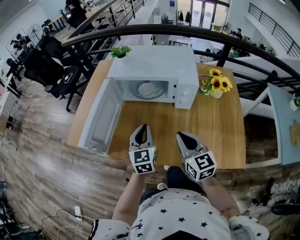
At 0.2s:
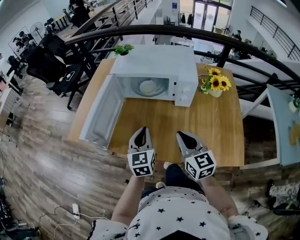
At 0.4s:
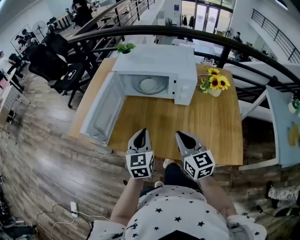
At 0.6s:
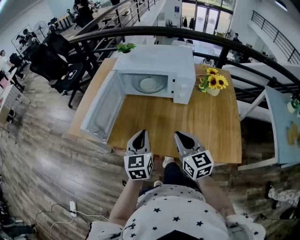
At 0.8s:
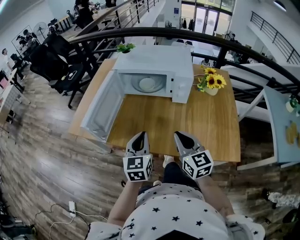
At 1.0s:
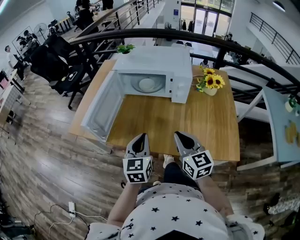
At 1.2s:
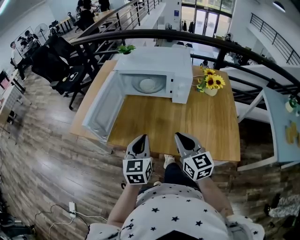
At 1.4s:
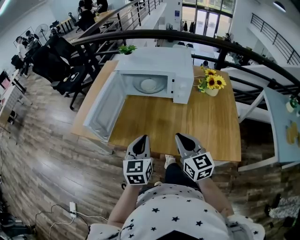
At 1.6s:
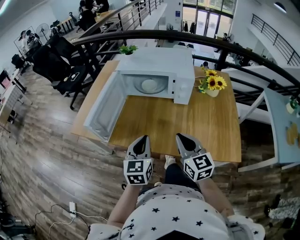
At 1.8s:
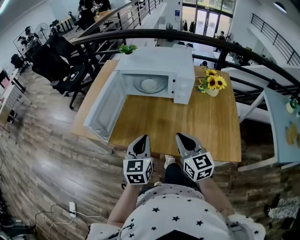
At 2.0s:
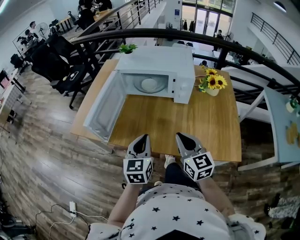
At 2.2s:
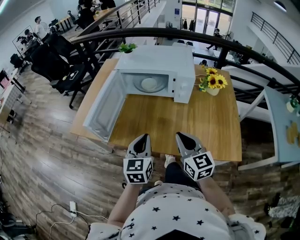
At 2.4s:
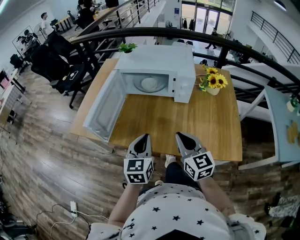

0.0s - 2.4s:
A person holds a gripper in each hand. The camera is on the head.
0.0s - 1.2s: The right gripper travels backward by some 10 cm. Meanwhile the left gripper moves backward, some 15 cm.
1.2s - 2.4s: Both grippers stay put.

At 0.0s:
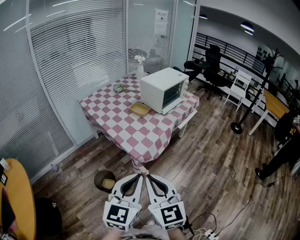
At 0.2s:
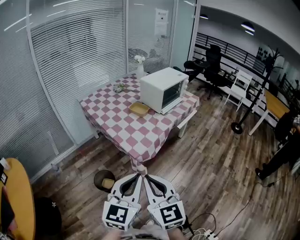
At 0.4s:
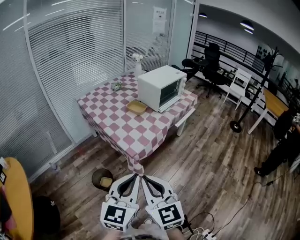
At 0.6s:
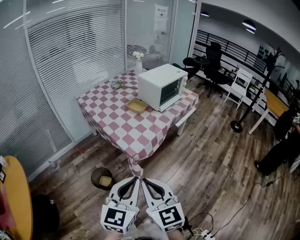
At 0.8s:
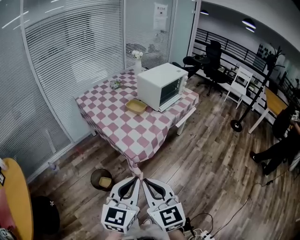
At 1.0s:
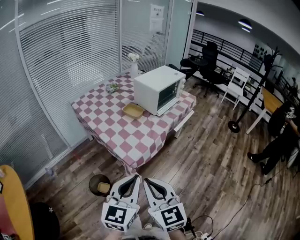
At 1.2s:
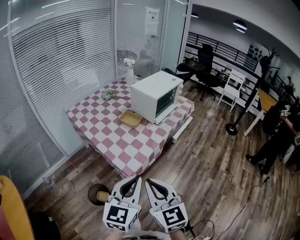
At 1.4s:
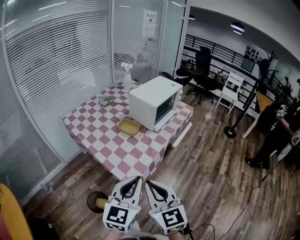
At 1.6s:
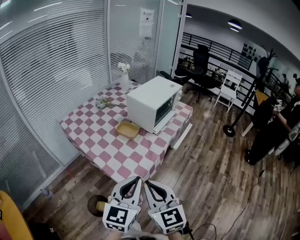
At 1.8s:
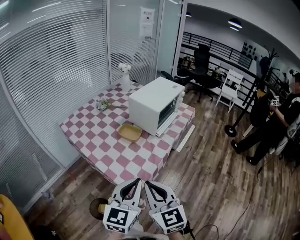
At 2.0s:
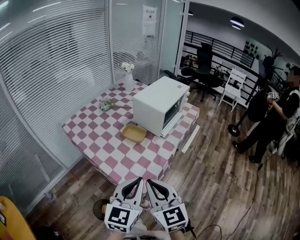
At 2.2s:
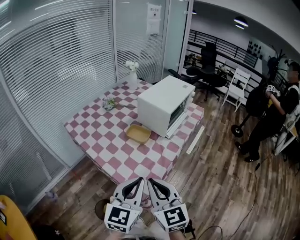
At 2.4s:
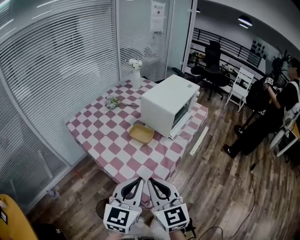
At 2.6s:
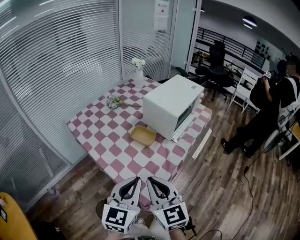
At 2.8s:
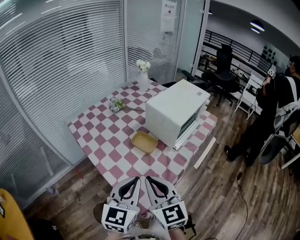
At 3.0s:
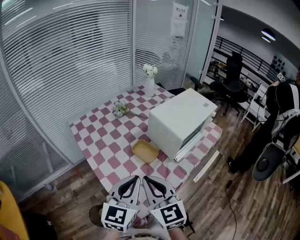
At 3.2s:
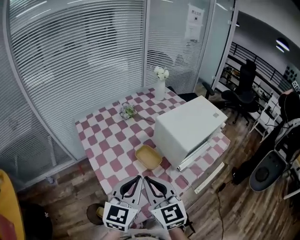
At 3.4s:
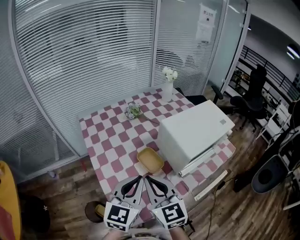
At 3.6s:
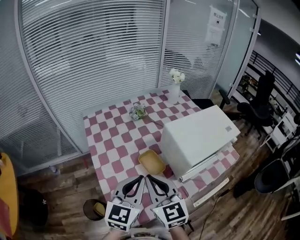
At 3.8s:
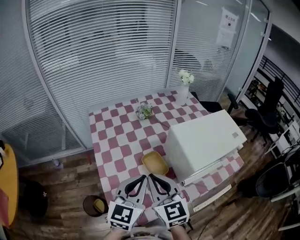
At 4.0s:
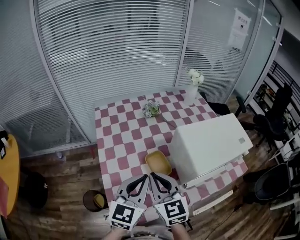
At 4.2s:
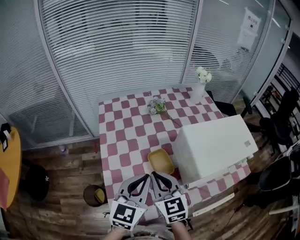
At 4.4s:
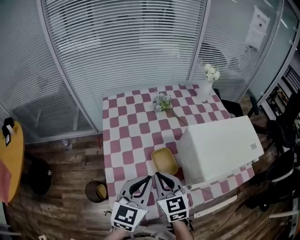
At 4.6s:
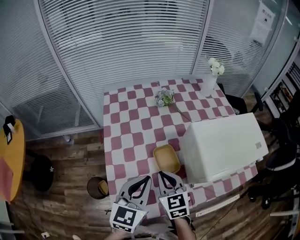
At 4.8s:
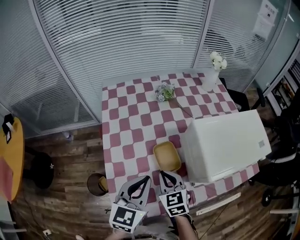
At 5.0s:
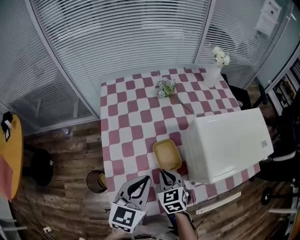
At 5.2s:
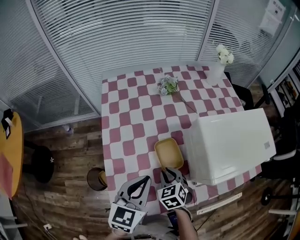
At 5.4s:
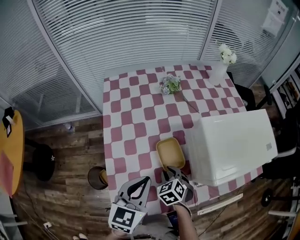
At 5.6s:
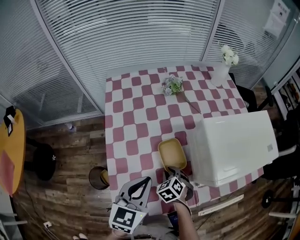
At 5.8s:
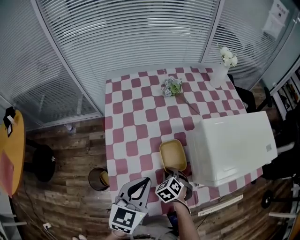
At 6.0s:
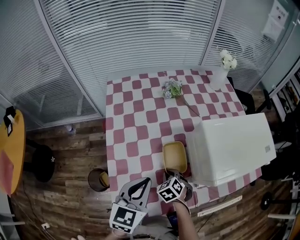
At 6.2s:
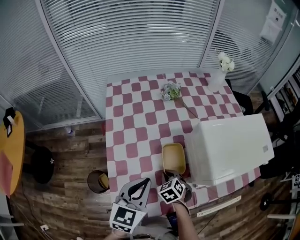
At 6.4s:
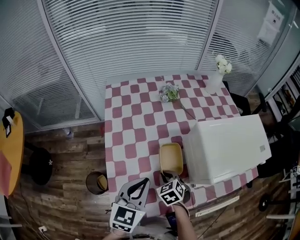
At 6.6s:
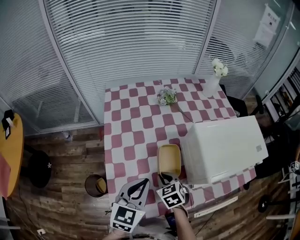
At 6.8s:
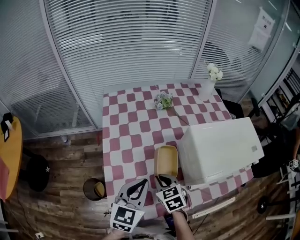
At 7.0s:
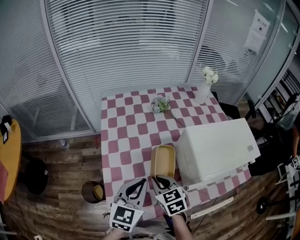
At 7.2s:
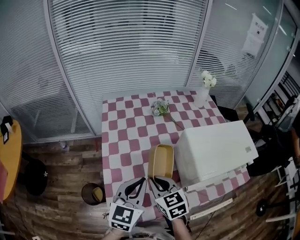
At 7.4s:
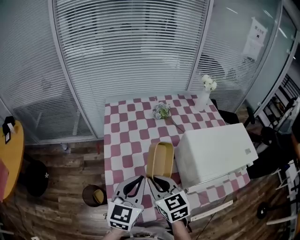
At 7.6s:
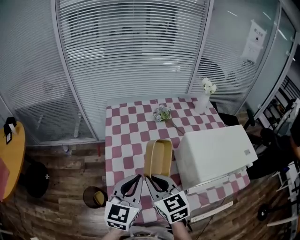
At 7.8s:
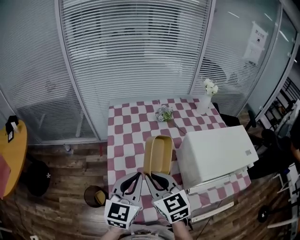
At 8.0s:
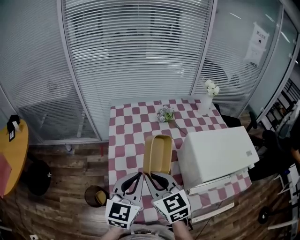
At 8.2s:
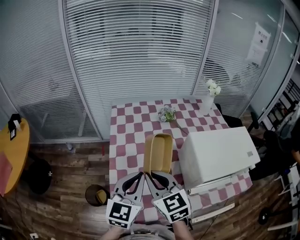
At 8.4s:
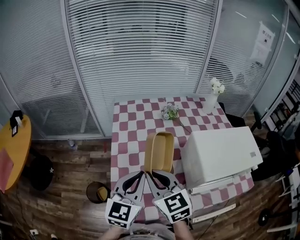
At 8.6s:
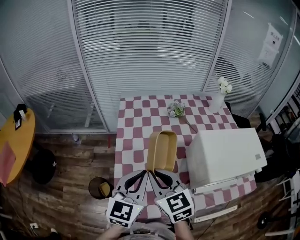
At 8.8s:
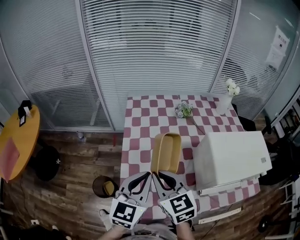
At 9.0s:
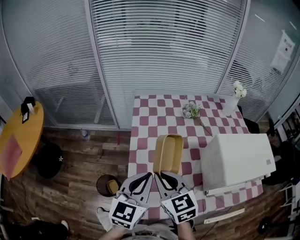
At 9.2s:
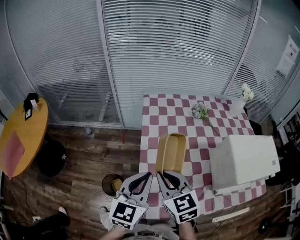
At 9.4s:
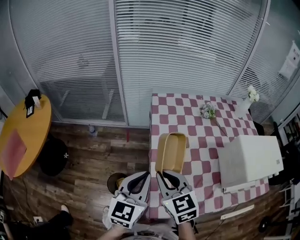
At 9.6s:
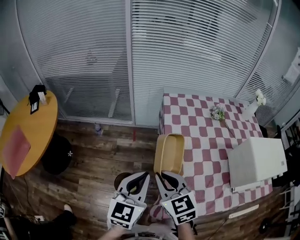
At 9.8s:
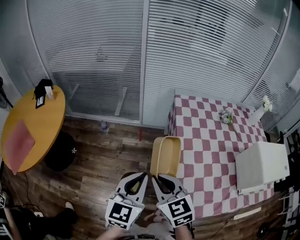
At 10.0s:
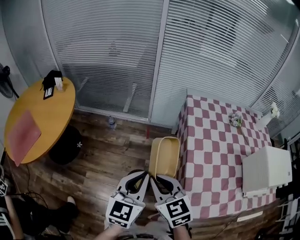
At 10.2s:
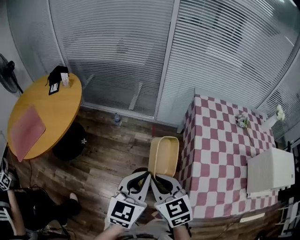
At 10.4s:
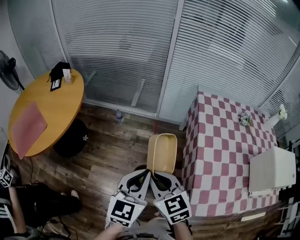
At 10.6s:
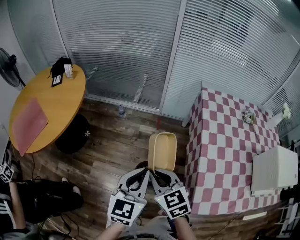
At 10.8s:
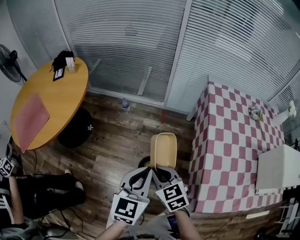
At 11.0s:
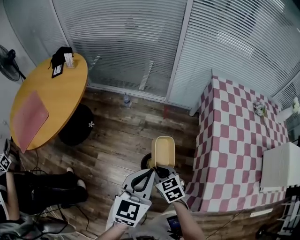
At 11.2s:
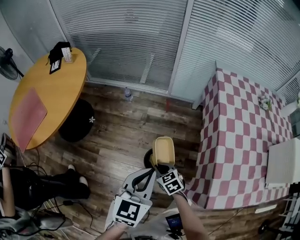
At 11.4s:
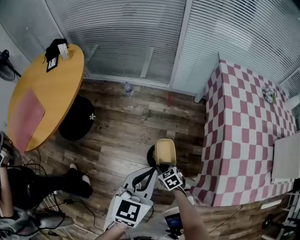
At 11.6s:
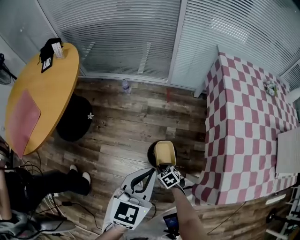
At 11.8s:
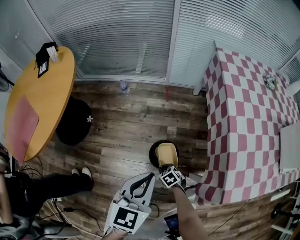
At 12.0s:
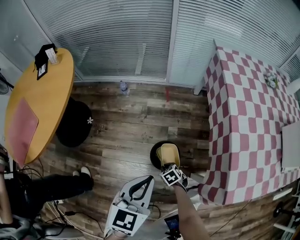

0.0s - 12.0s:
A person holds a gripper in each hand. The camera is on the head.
0.0s - 1.6s: Both grippers travel together forward, approximately 20 cm.
1.6s - 3.0s: Both grippers travel together forward, some 25 cm.
3.0s - 4.4s: The right gripper travels forward and downward by approximately 20 cm, and rotates about 30 degrees, while the left gripper heads forward and to the right, covering about 10 cm, and rotates some 30 degrees.
4.4s - 6.0s: The left gripper goes about 5 cm downward; the right gripper moves downward, roughly 20 cm, and tilts its fingers about 40 degrees downward.
6.0s - 7.6s: The left gripper travels upward by about 10 cm, while the right gripper goes some 25 cm upward, and angles its fingers upward, by about 40 degrees.
7.6s - 9.0s: Both grippers move to the left, roughly 10 cm.
9.0s - 10.4s: Both grippers travel together to the left, some 40 cm.
10.4s - 12.0s: The right gripper shifts about 50 cm downward, and tips its fingers downward by some 40 degrees, while the left gripper is displaced downward and to the left by approximately 20 cm.

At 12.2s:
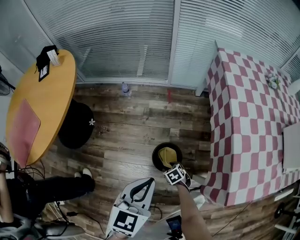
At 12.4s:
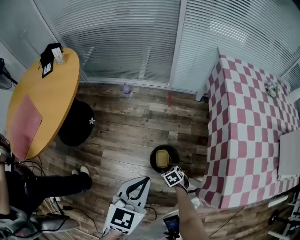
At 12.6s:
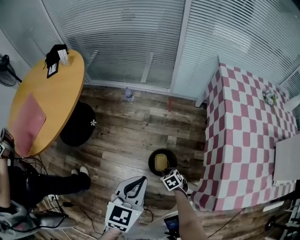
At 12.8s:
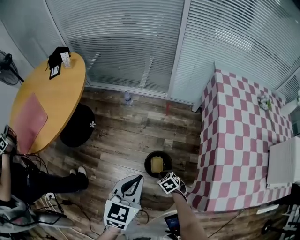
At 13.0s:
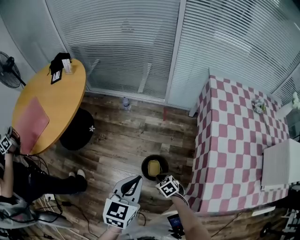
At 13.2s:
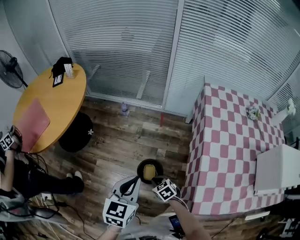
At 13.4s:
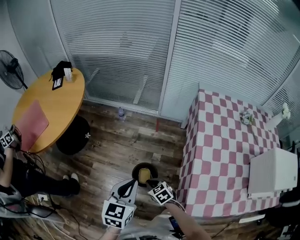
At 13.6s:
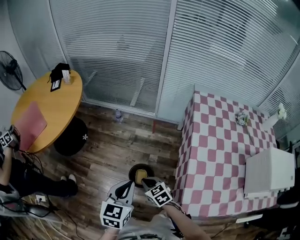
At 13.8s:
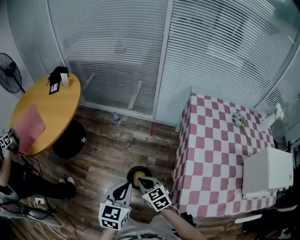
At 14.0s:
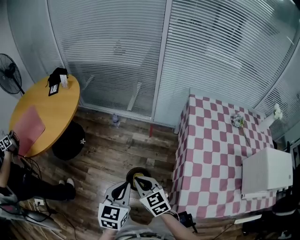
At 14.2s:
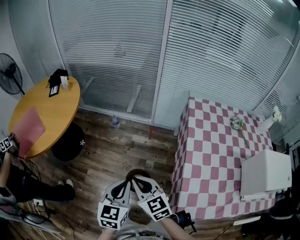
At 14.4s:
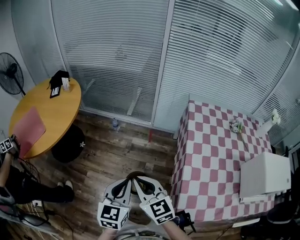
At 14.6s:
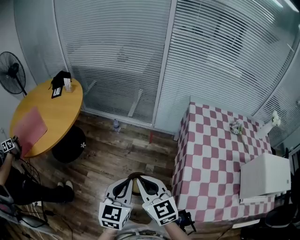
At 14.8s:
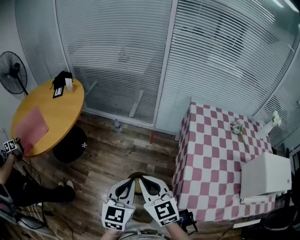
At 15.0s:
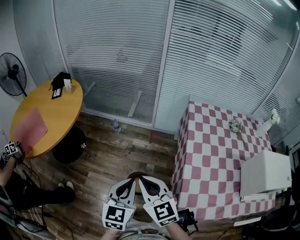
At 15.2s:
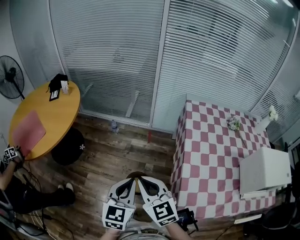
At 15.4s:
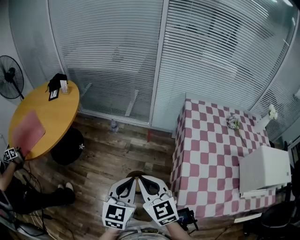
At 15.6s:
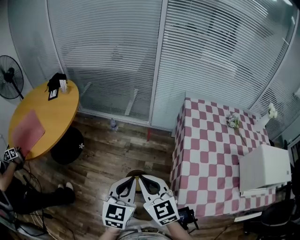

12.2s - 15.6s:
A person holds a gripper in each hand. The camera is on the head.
12.2s - 13.8s: The right gripper heads upward, covering some 35 cm, points its fingers about 30 degrees further upward, and closes its fingers. The left gripper is displaced upward and to the right by roughly 10 cm.
13.8s - 15.6s: The left gripper shifts roughly 5 cm upward. The right gripper is displaced upward by approximately 20 cm, and swivels some 20 degrees.

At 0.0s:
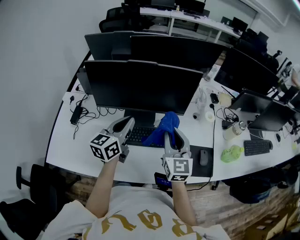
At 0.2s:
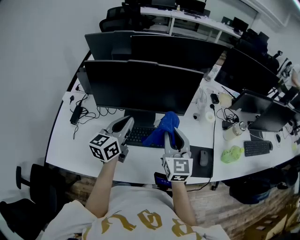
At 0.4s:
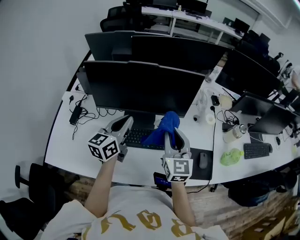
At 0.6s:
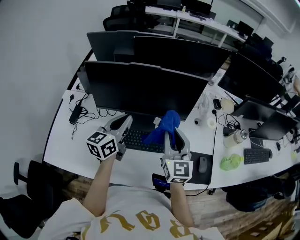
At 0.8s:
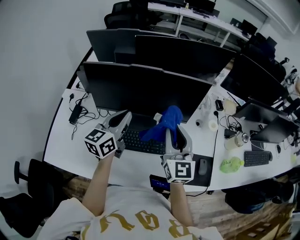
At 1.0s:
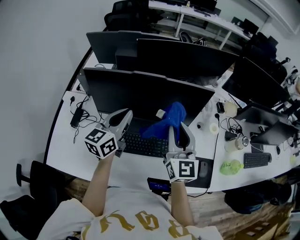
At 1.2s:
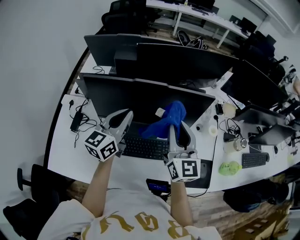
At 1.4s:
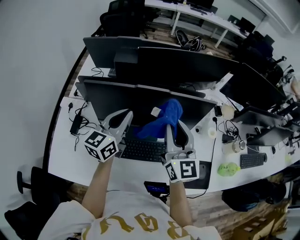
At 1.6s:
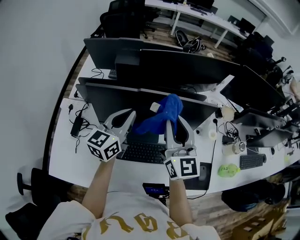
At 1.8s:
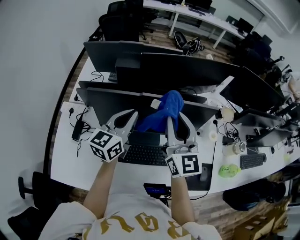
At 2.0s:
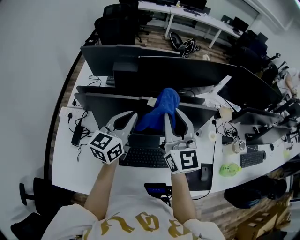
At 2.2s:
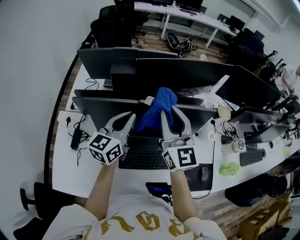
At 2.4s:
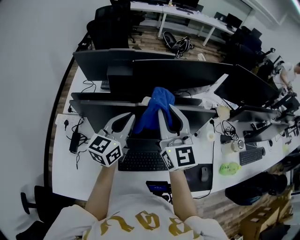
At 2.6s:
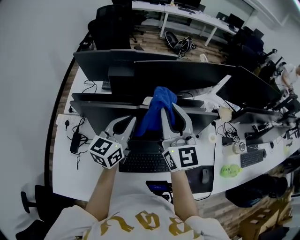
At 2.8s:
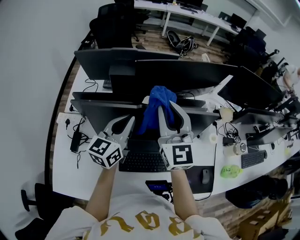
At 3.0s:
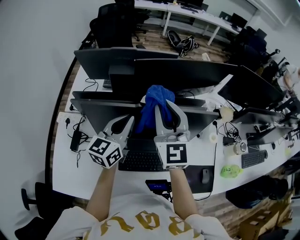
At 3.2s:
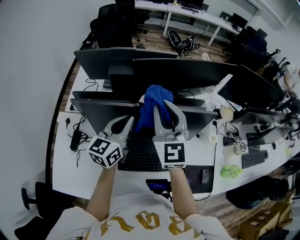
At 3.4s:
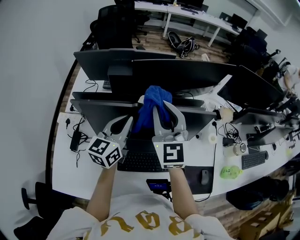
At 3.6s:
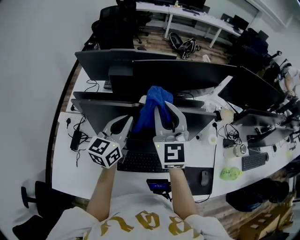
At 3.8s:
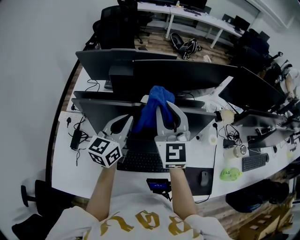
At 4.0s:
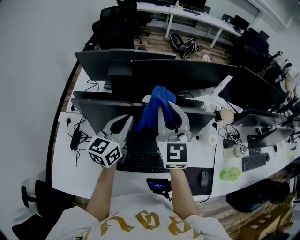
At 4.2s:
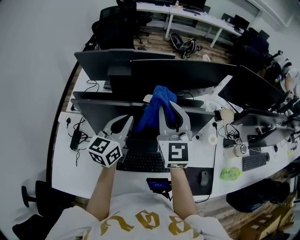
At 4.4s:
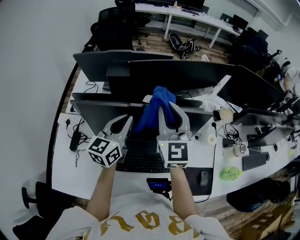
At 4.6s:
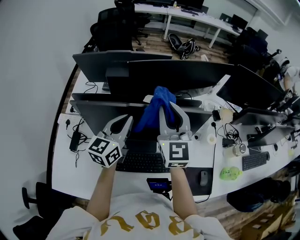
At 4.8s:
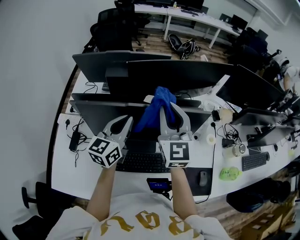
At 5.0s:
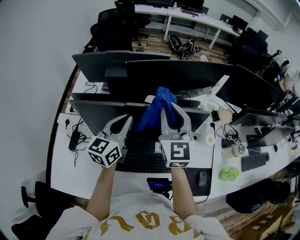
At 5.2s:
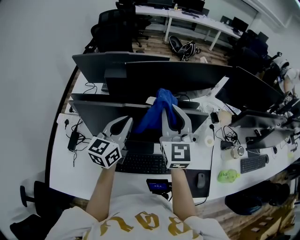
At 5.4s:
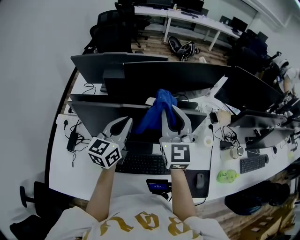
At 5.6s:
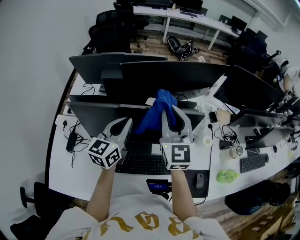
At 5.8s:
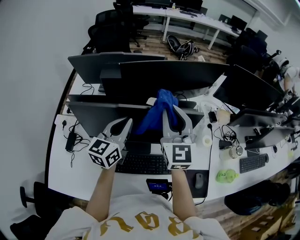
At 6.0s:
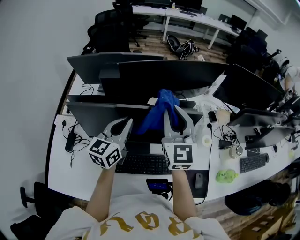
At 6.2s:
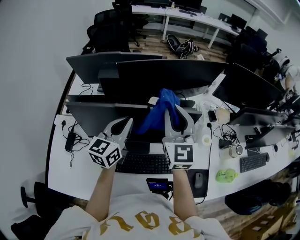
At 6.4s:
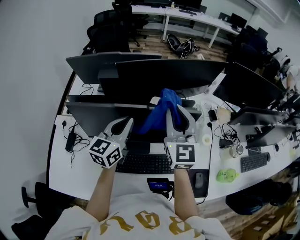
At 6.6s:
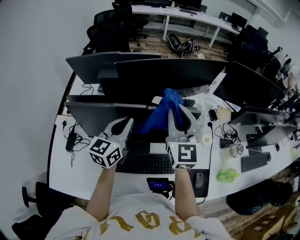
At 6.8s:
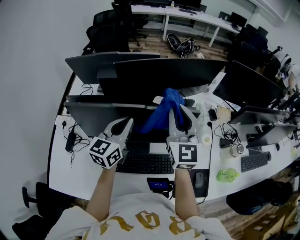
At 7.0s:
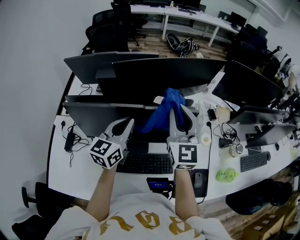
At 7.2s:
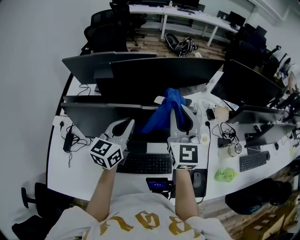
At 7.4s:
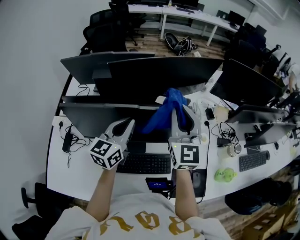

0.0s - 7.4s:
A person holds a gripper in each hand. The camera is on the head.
0.0s - 1.4s: The left gripper travels forward, upward and to the left by some 15 cm. Meanwhile the right gripper shifts approximately 20 cm upward, forward and to the left.
1.4s - 3.0s: The right gripper heads forward, to the left and upward, covering approximately 15 cm, while the left gripper moves forward, approximately 5 cm.
3.0s - 4.4s: The grippers make only small movements.
4.4s - 6.0s: The right gripper shifts approximately 5 cm to the right. The left gripper ends up approximately 5 cm from where it was.
6.0s - 7.4s: The right gripper heads to the right, covering some 5 cm.
